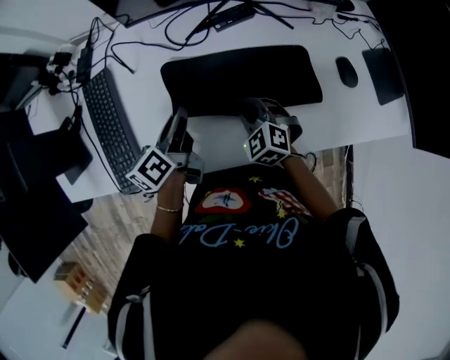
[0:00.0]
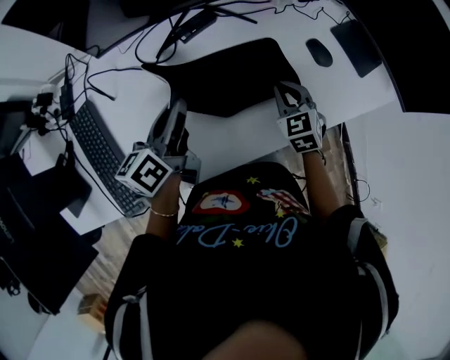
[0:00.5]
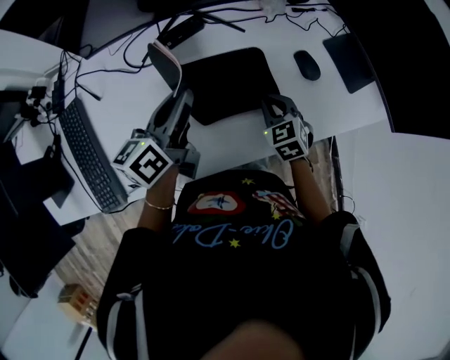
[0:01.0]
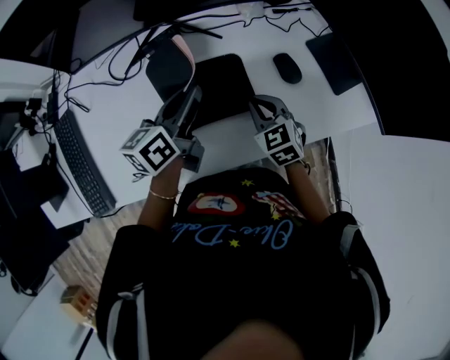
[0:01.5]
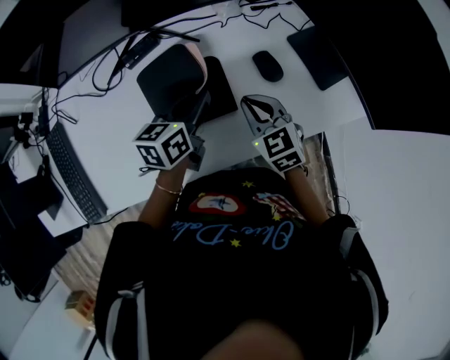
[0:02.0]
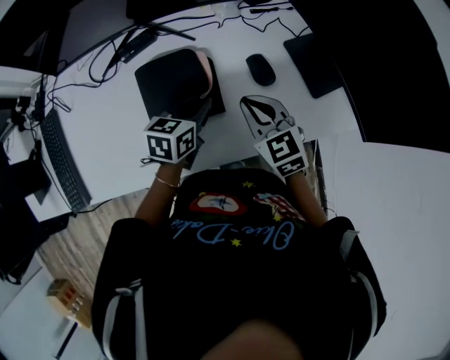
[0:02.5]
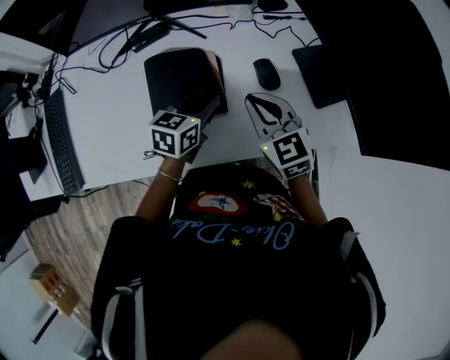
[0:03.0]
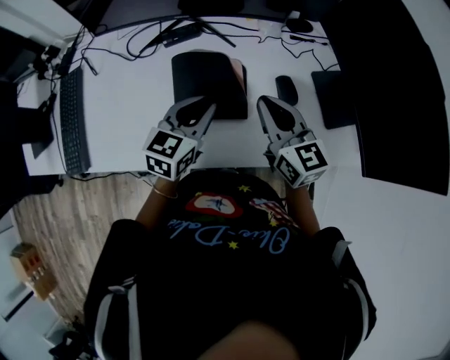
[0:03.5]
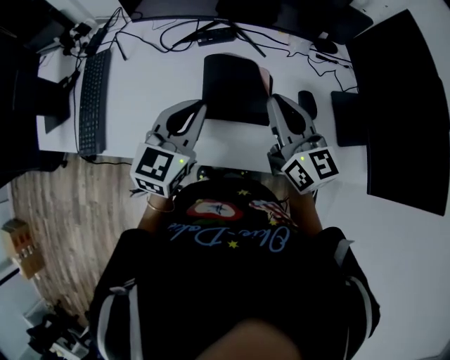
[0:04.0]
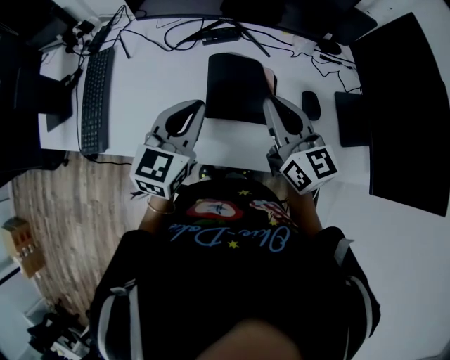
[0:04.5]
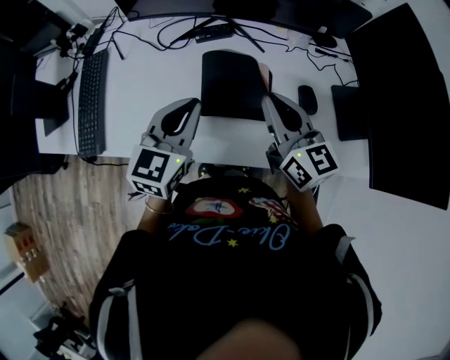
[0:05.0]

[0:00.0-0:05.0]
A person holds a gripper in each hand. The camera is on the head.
0:00.0 to 0:02.5: The two grippers go approximately 30 cm to the right. The left gripper twists about 40 degrees clockwise, seen from behind. The right gripper turns by some 30 degrees.
0:02.5 to 0:05.0: The left gripper heads to the left and upward, covering some 20 cm, and turns by approximately 30 degrees; the right gripper moves upward and to the left, approximately 15 cm, and turns by about 30 degrees.

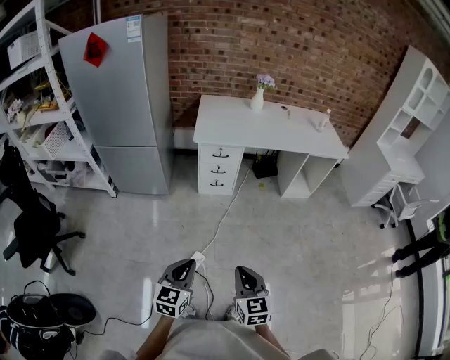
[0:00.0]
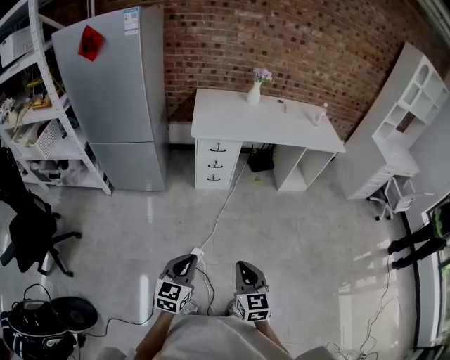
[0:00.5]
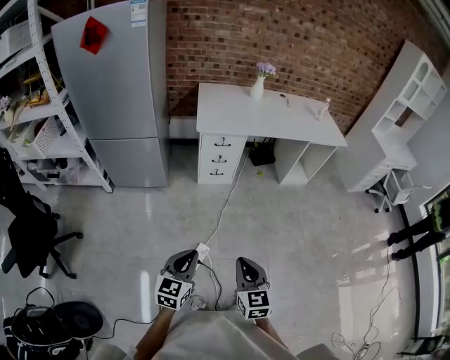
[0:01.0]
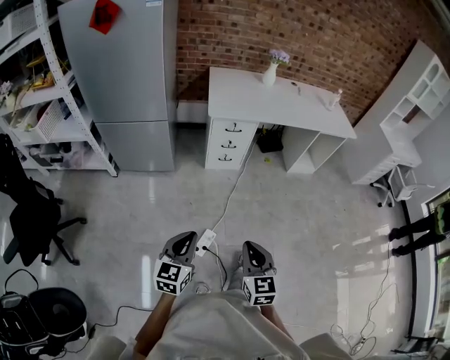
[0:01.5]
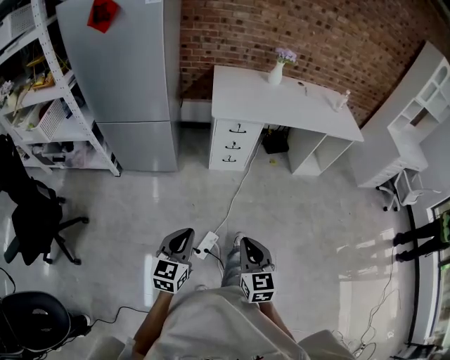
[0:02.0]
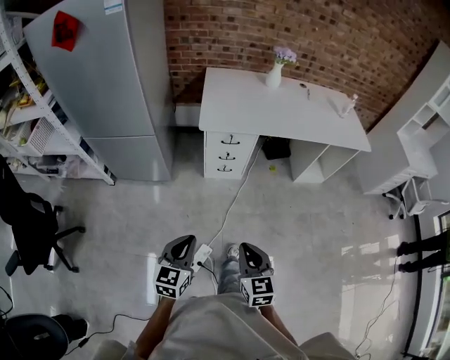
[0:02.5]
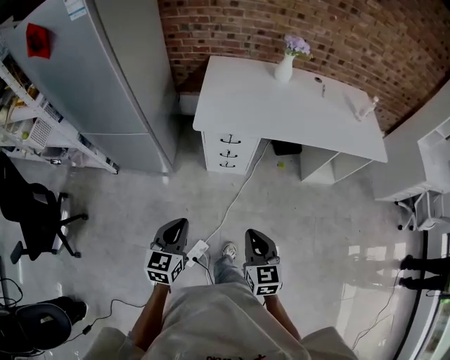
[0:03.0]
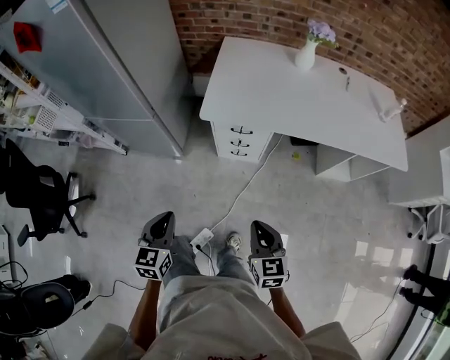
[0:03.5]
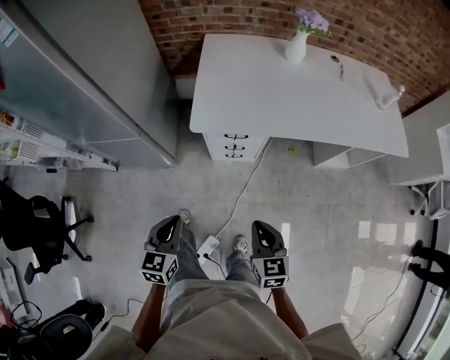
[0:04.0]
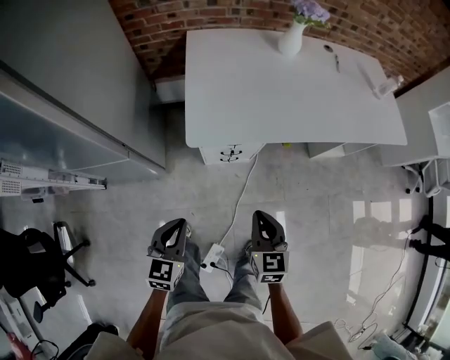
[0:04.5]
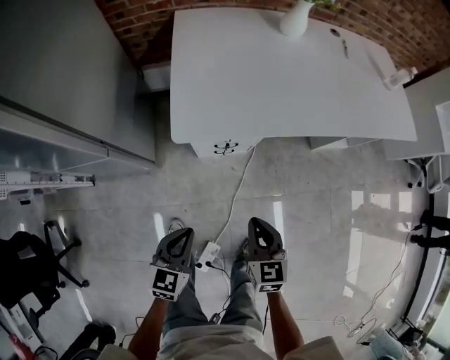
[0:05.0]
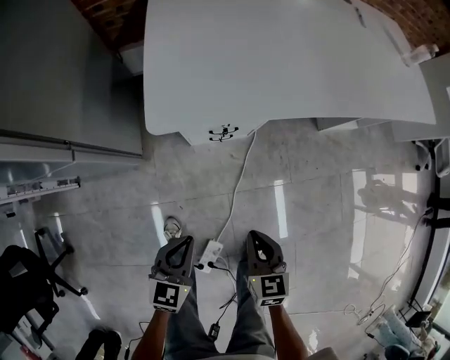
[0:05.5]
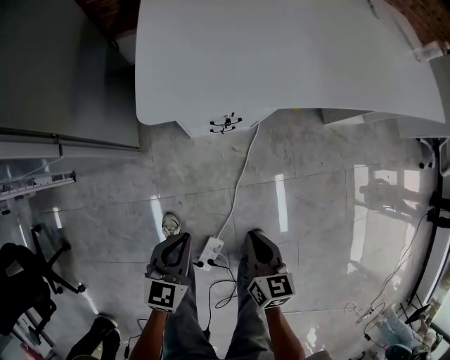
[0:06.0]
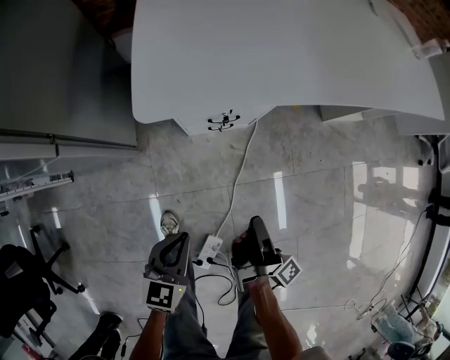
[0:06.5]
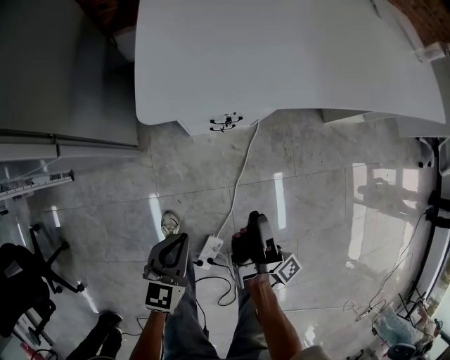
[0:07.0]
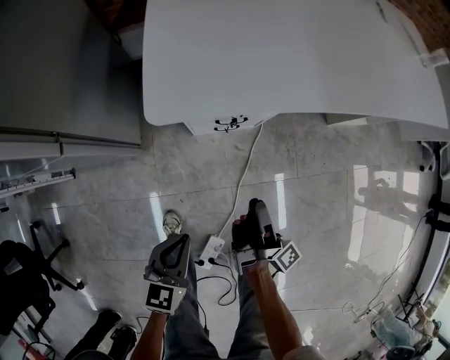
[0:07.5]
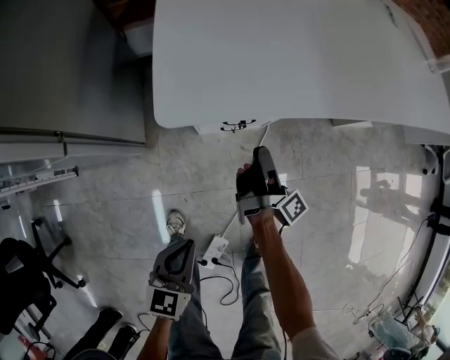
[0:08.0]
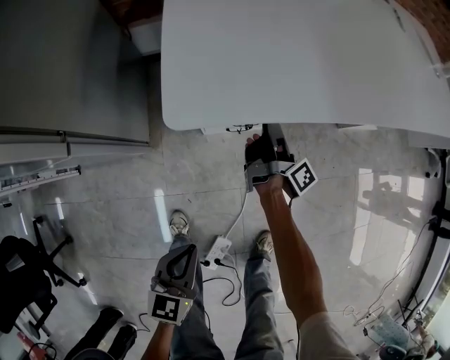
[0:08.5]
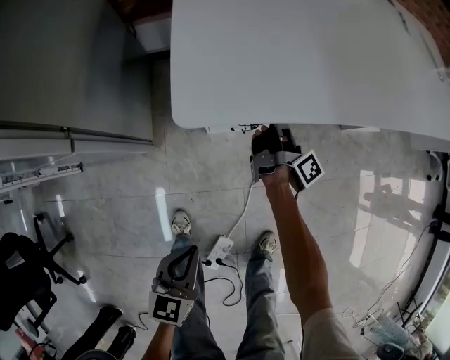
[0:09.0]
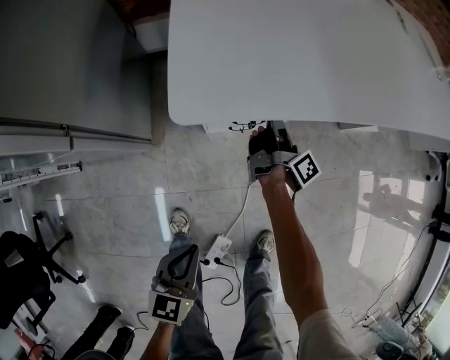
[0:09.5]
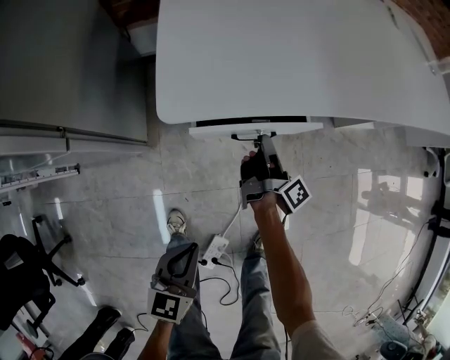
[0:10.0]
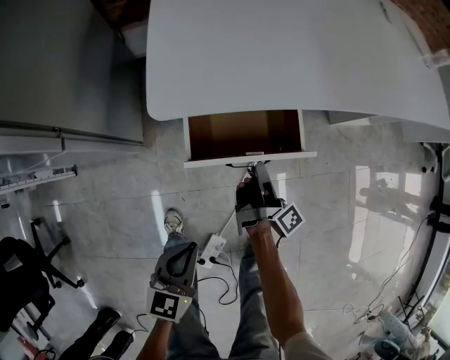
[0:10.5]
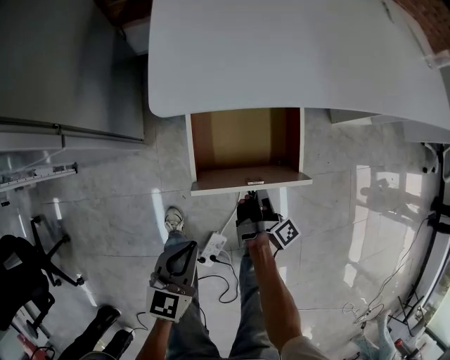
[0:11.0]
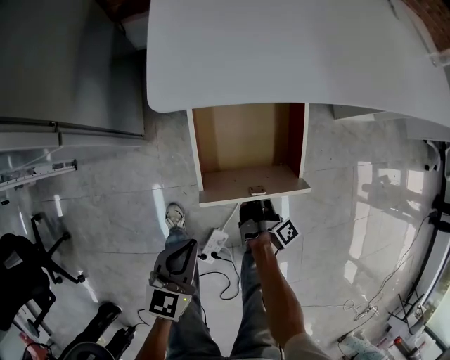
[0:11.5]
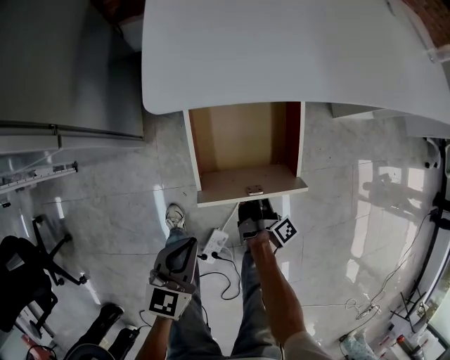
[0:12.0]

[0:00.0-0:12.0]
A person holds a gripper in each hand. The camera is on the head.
0:00.0 to 0:02.0: Both grippers move to the left and forward, roughly 15 cm.
0:02.0 to 0:04.0: The left gripper is displaced forward by about 35 cm; the right gripper is displaced forward and to the right by approximately 40 cm.
0:04.0 to 0:06.0: The grippers both shift downward by about 25 cm. The right gripper rotates about 30 degrees.
0:06.0 to 0:08.0: The right gripper moves forward, some 20 cm, rolls clockwise, seen from behind, by approximately 70 degrees, and opens up.
0:08.0 to 0:10.0: The right gripper goes forward and returns, about 10 cm each way, and closes up.
0:10.0 to 0:12.0: The right gripper moves backward and downward, about 20 cm.

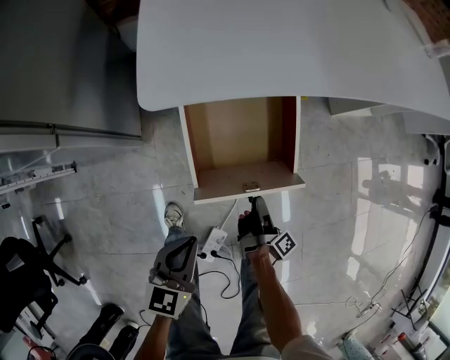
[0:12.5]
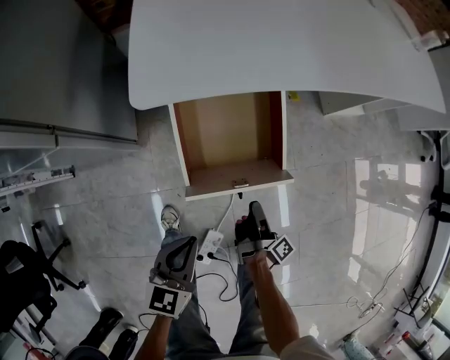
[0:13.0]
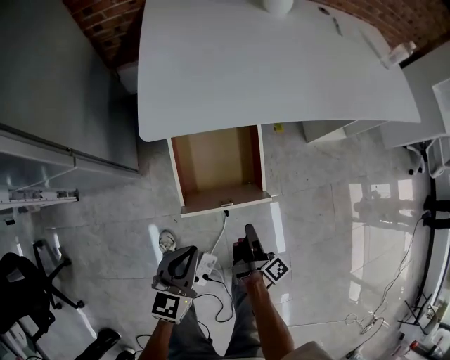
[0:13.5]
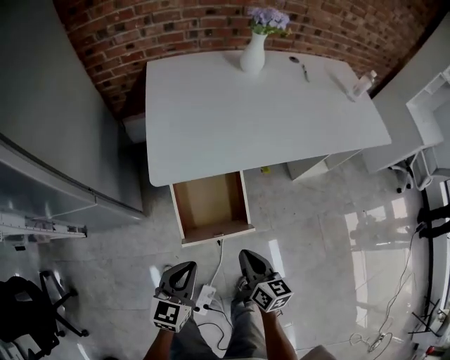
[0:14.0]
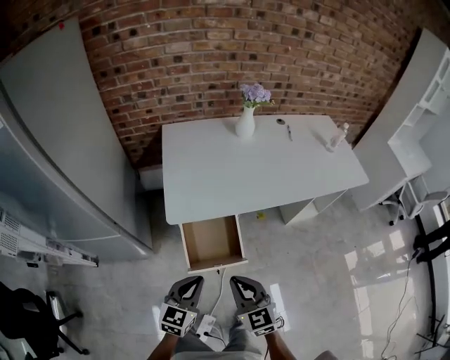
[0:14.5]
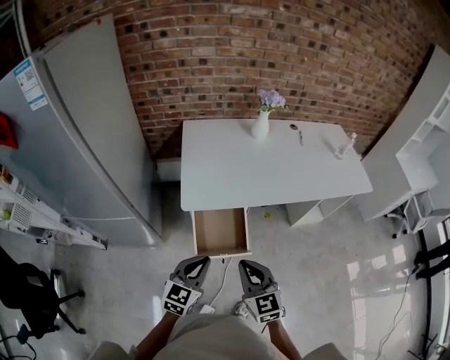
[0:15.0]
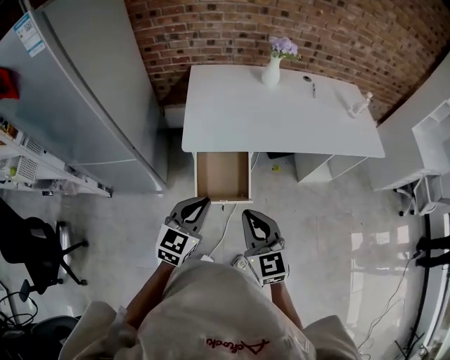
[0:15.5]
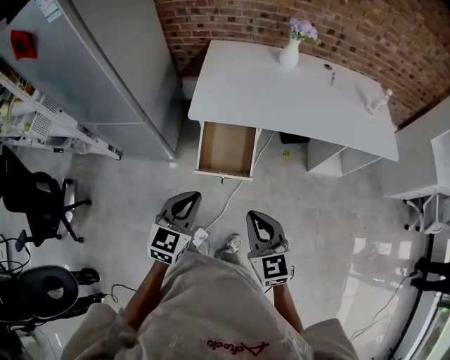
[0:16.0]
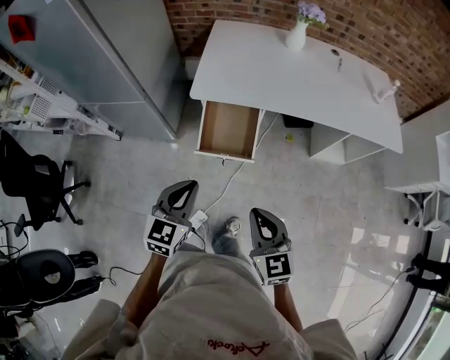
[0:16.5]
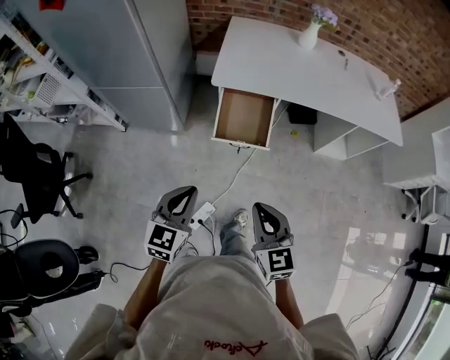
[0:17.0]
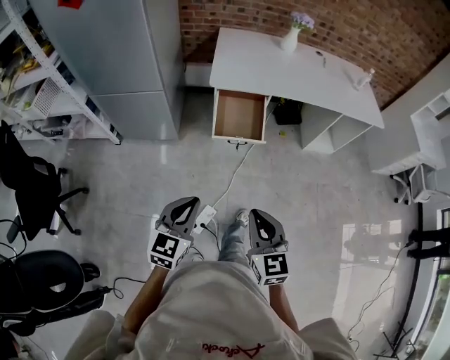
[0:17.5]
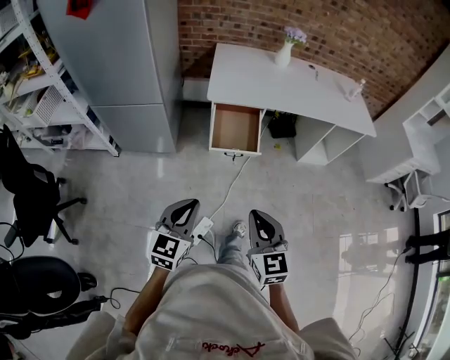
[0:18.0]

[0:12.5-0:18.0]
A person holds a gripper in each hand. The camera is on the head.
0:12.5 to 0:14.5: The right gripper goes some 50 cm upward, rotates around the line of its fingers by some 110 degrees, counterclockwise from behind, and closes. Meanwhile the left gripper is displaced upward by some 25 cm.
0:14.5 to 0:16.0: The right gripper is displaced to the right, backward and upward by roughly 15 cm. The left gripper travels backward, upward and to the right by about 15 cm.
0:16.0 to 0:18.0: Both grippers travel together backward and to the left, about 25 cm.

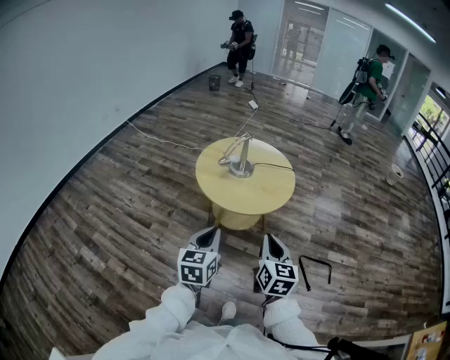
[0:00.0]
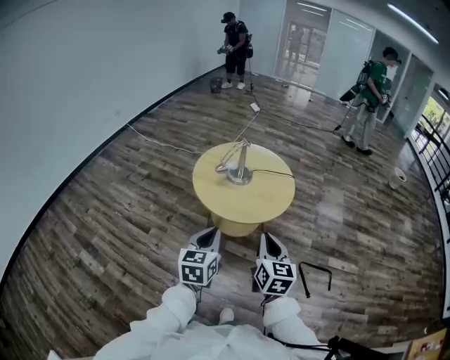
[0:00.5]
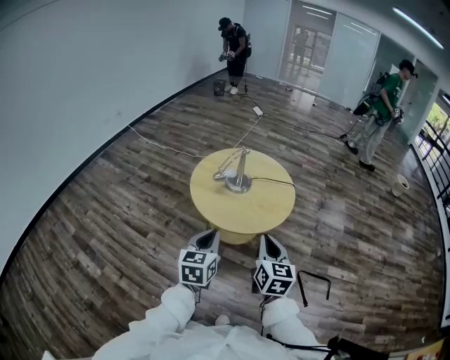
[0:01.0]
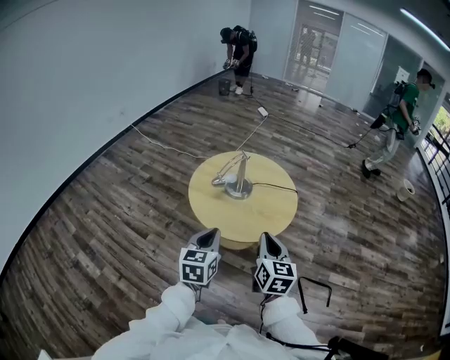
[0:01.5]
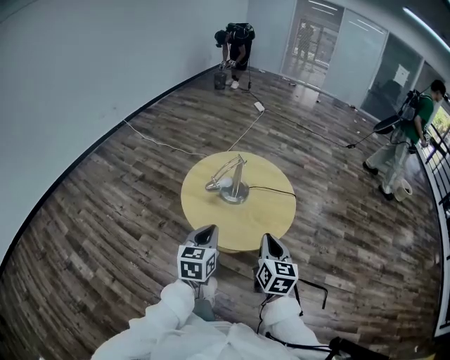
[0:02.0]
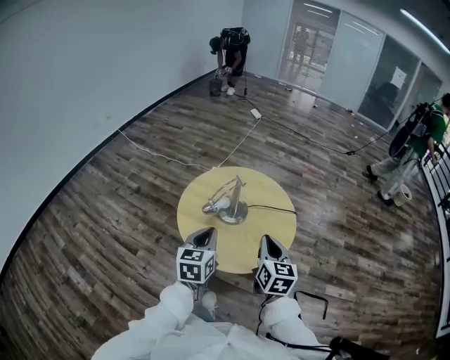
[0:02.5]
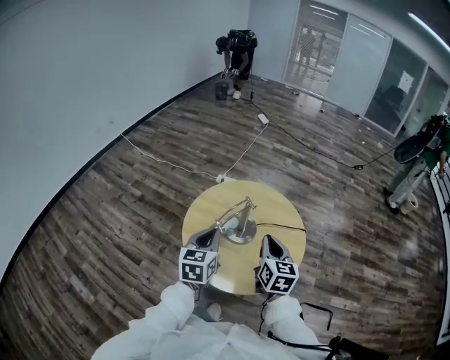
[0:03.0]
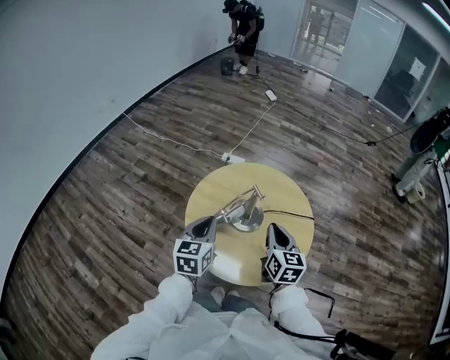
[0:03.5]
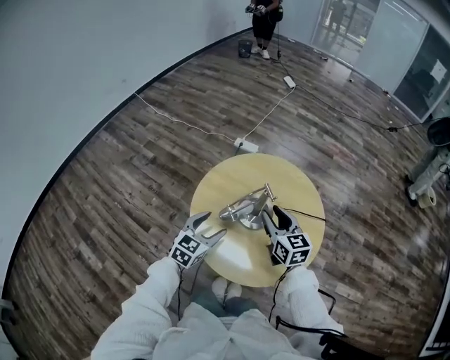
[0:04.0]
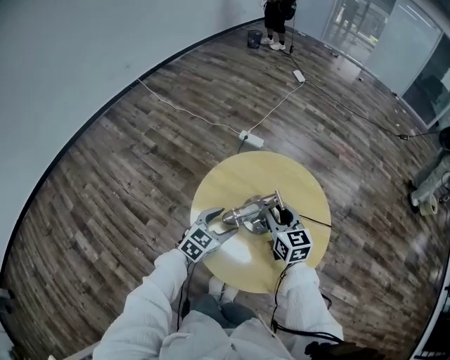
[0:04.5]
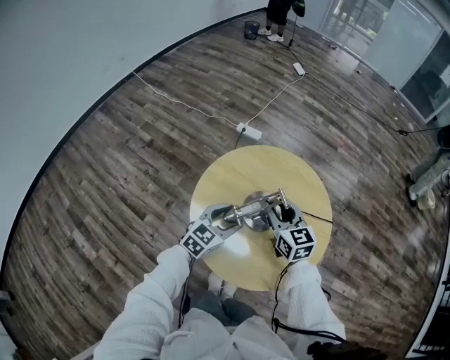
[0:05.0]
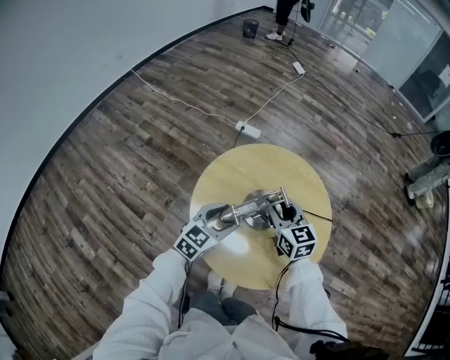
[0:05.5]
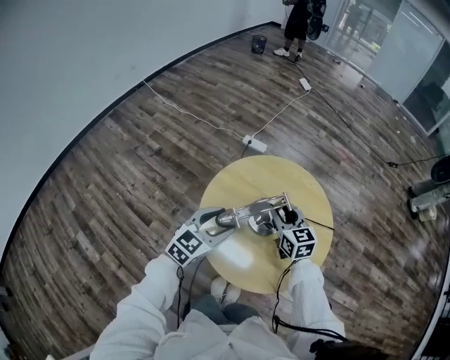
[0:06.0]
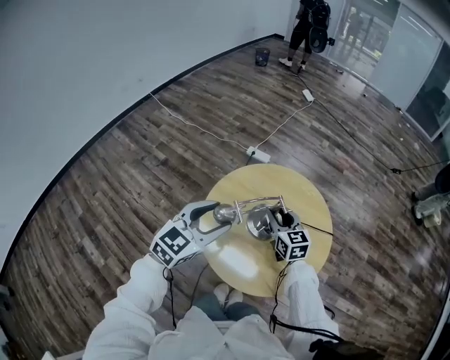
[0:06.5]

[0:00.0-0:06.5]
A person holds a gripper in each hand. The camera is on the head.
0:00.0 to 0:02.0: Both grippers travel together forward, about 25 cm.
0:02.0 to 0:04.5: The left gripper is displaced forward and downward by about 35 cm, changes its angle by roughly 30 degrees, and opens its fingers; the right gripper moves forward, approximately 35 cm, turns by roughly 30 degrees, and opens its fingers.
0:04.5 to 0:06.5: The left gripper travels upward by some 20 cm.
